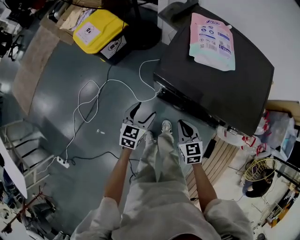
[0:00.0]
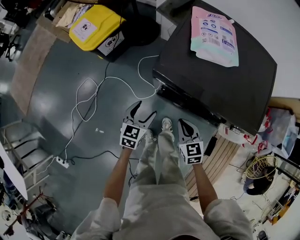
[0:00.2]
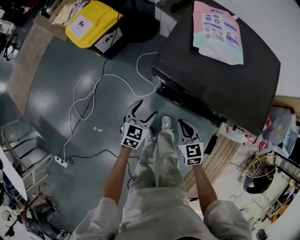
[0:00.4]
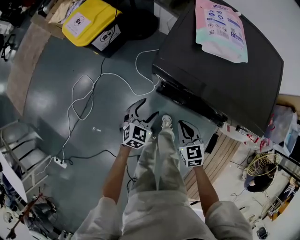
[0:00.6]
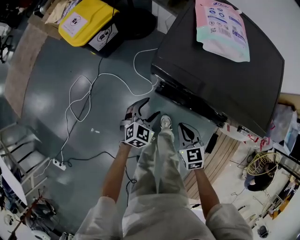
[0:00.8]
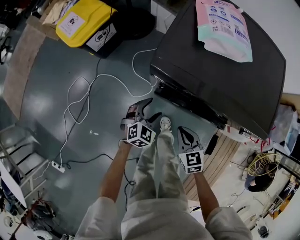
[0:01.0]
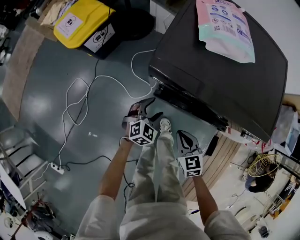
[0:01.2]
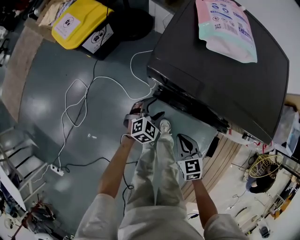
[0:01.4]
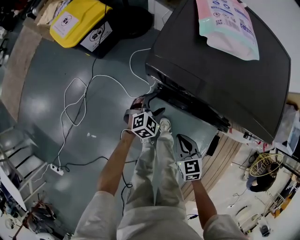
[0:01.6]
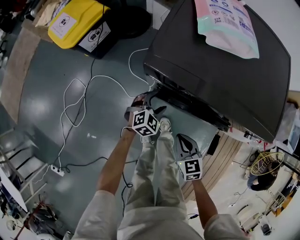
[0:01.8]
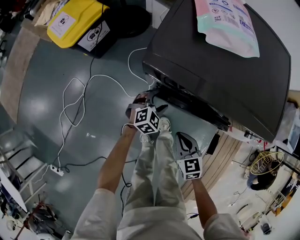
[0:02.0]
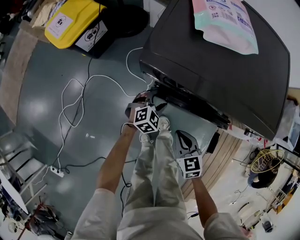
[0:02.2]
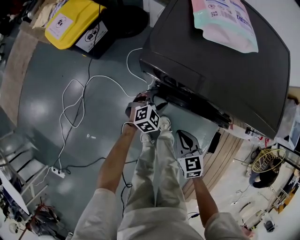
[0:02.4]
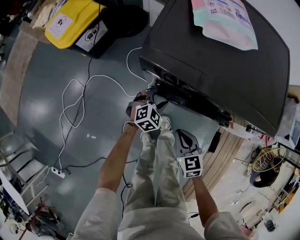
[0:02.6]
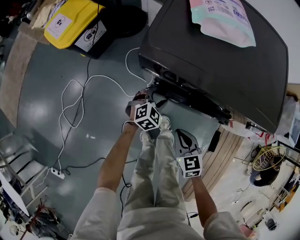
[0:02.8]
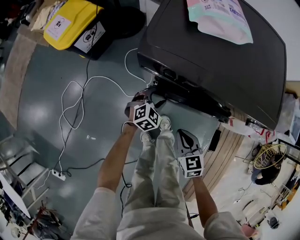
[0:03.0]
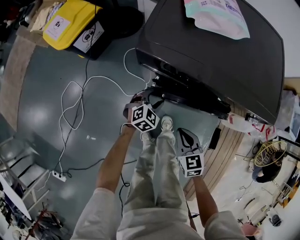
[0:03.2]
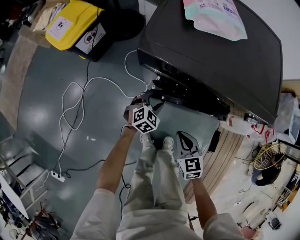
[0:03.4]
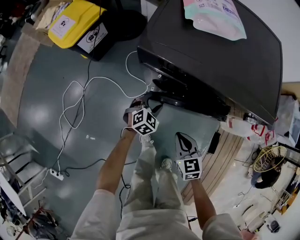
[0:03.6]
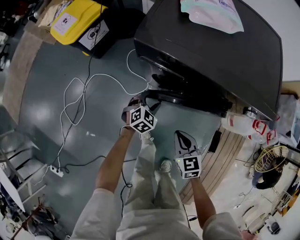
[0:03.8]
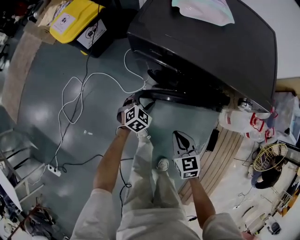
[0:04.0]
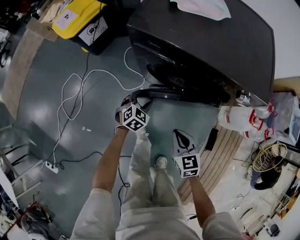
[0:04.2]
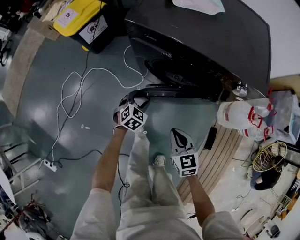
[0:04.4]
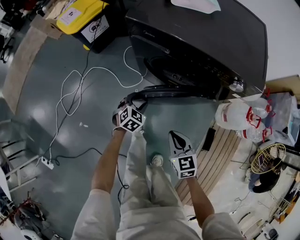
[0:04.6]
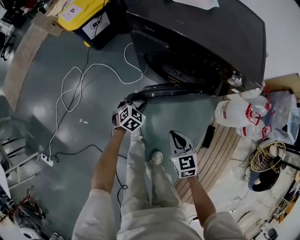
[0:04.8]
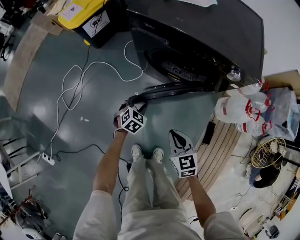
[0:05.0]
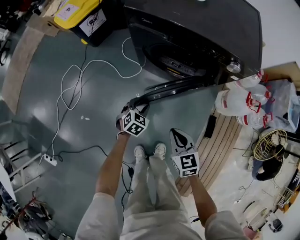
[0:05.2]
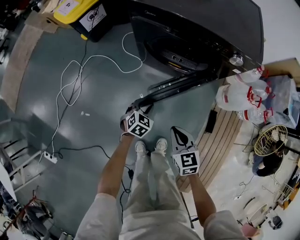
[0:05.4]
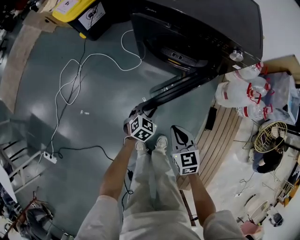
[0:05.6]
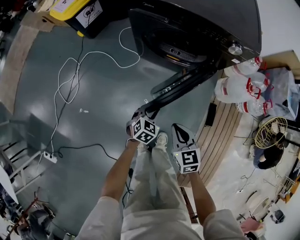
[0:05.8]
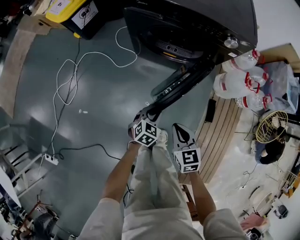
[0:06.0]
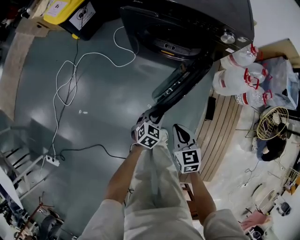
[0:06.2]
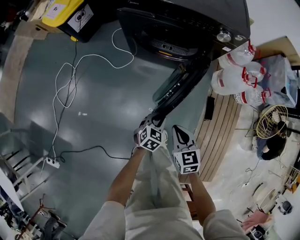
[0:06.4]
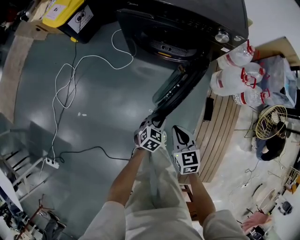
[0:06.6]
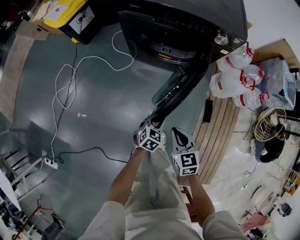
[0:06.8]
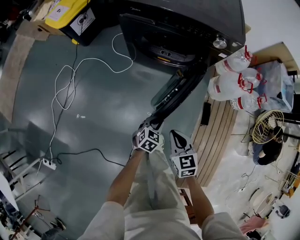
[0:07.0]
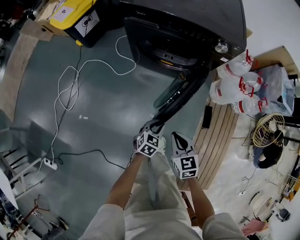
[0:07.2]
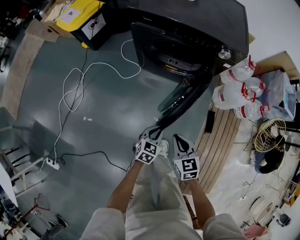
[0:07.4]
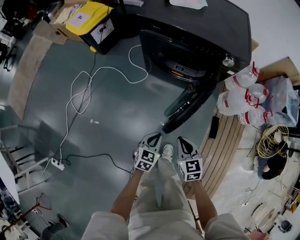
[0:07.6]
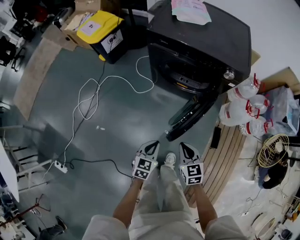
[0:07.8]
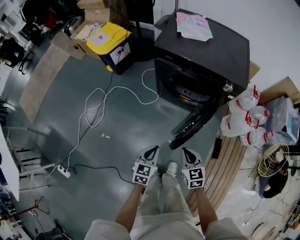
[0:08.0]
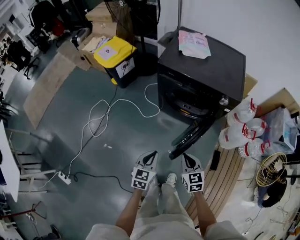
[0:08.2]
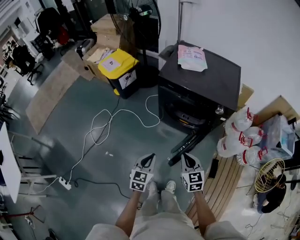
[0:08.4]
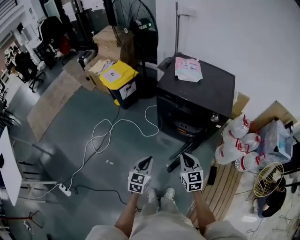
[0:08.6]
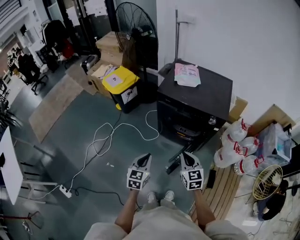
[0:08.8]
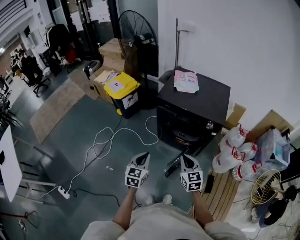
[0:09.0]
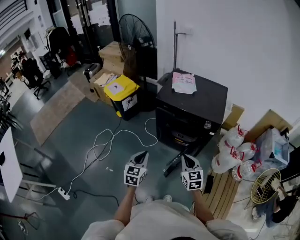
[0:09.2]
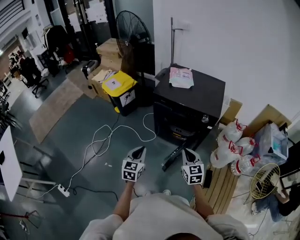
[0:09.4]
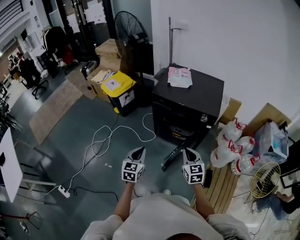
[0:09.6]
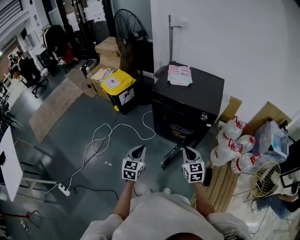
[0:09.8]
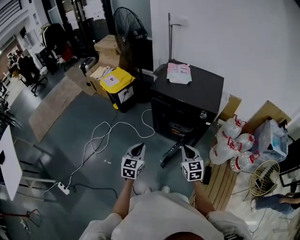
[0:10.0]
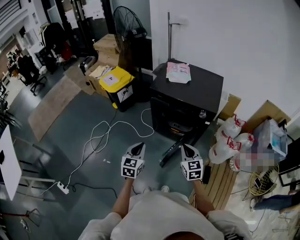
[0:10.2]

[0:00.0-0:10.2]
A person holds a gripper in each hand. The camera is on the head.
0.0 to 1.4 s: Both grippers move downward, some 15 cm. The left gripper rotates about 40 degrees.
1.4 to 3.0 s: The grippers stay close to where they were, moving slightly.
3.0 to 4.4 s: The right gripper heads backward and to the right, covering approximately 15 cm. The left gripper travels backward by some 15 cm.
4.4 to 5.8 s: The grippers both shift backward by about 20 cm. The left gripper closes its fingers.
5.8 to 7.2 s: The left gripper is displaced backward and to the right by roughly 10 cm; the right gripper moves some 5 cm.
7.2 to 8.8 s: The left gripper moves upward and to the left, some 40 cm, and changes its angle by approximately 30 degrees; the right gripper goes roughly 30 cm upward.
8.8 to 10.2 s: The right gripper moves to the right, roughly 5 cm.

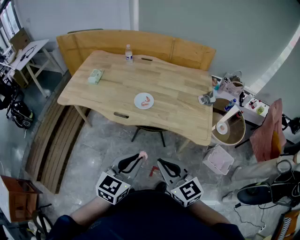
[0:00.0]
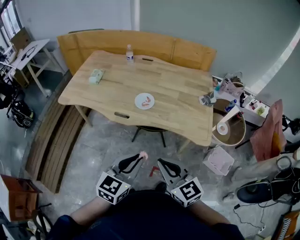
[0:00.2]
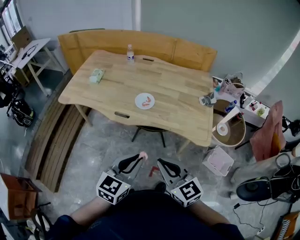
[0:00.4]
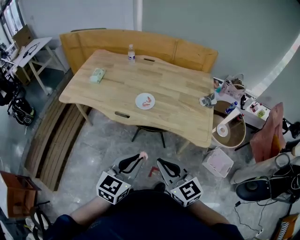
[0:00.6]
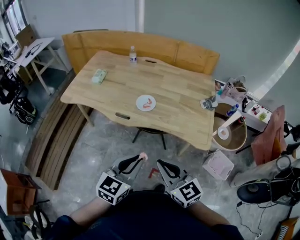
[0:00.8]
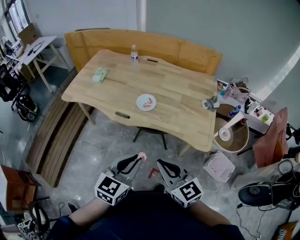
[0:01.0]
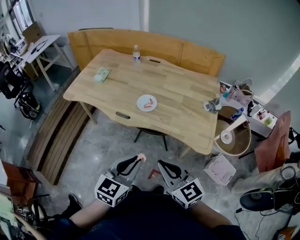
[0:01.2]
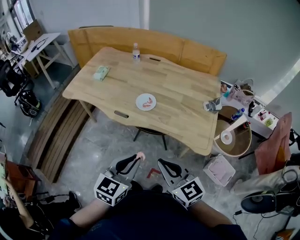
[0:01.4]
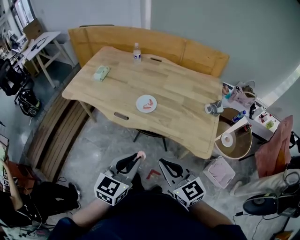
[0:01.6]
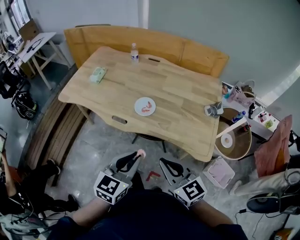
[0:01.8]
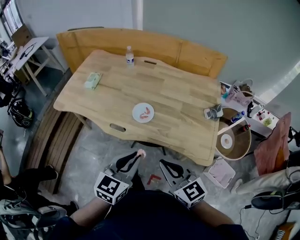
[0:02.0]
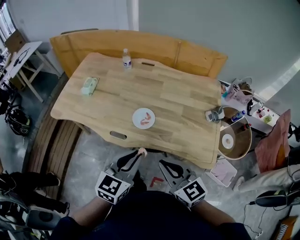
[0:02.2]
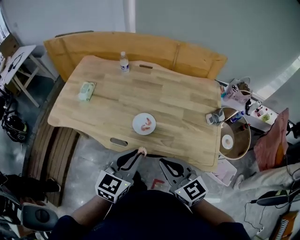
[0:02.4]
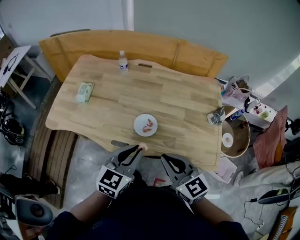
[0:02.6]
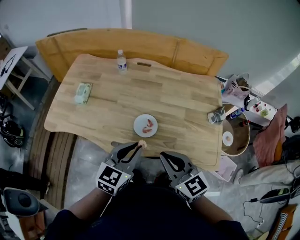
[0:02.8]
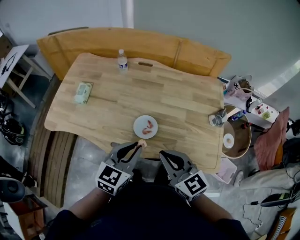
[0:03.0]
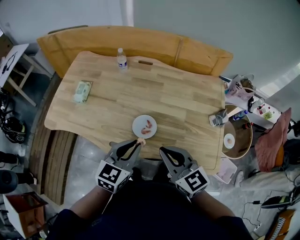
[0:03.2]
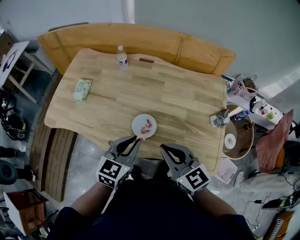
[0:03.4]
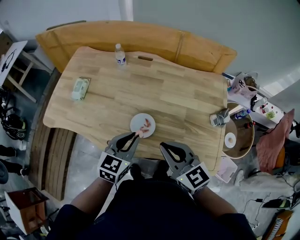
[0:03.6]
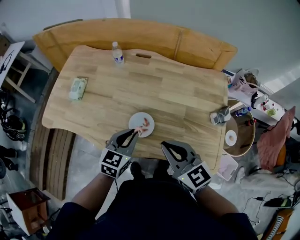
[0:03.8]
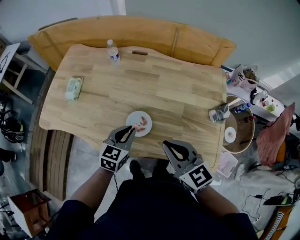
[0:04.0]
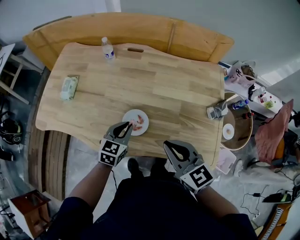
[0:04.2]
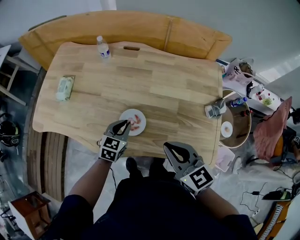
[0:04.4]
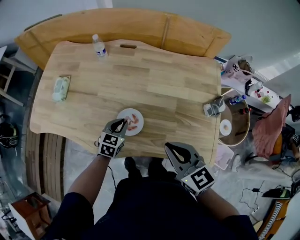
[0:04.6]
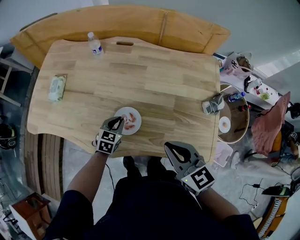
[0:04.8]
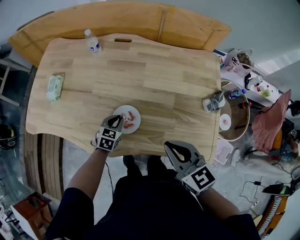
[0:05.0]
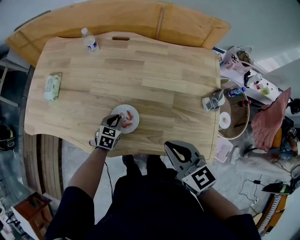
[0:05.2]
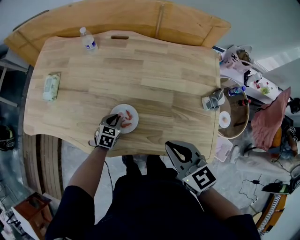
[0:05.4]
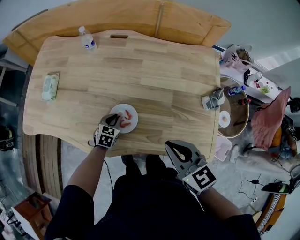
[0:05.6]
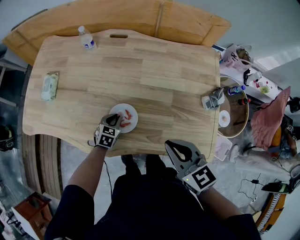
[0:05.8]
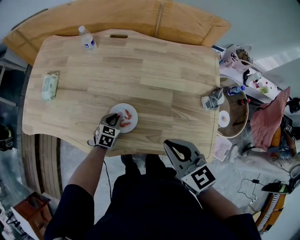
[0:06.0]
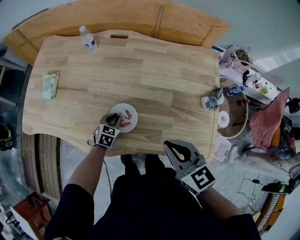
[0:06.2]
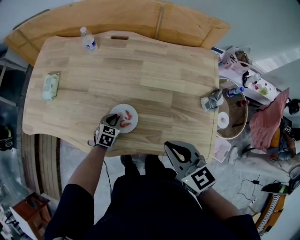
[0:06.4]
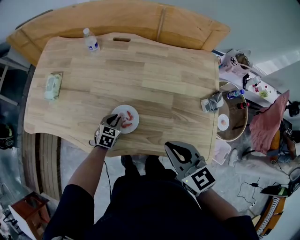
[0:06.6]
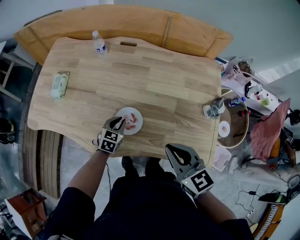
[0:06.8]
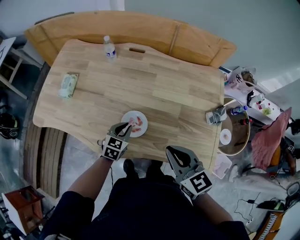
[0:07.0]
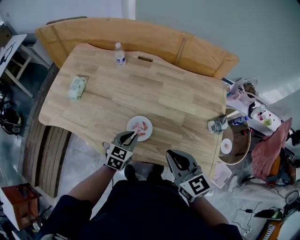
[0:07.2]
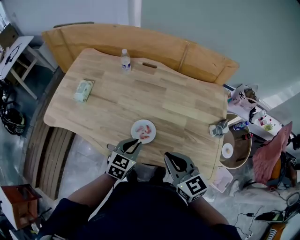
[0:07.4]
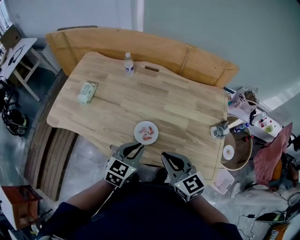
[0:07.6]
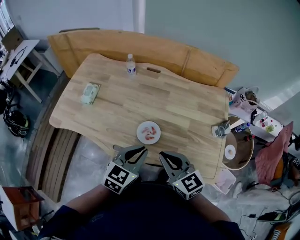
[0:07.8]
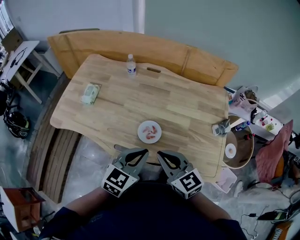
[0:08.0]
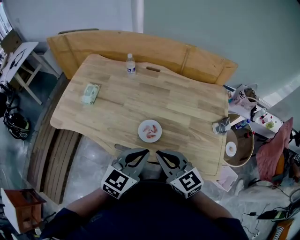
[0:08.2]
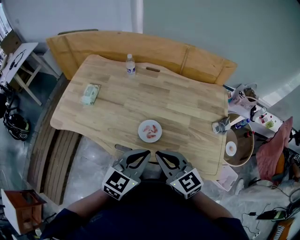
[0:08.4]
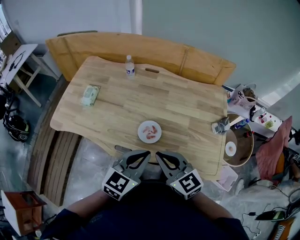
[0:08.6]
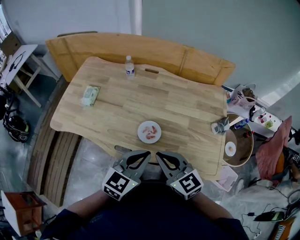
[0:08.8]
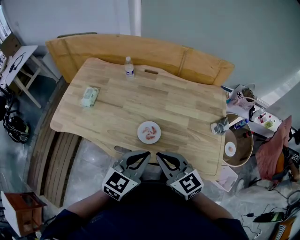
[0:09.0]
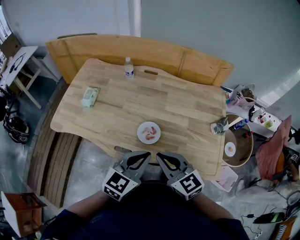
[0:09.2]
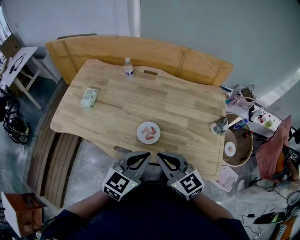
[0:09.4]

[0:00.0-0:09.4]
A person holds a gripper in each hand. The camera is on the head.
0.0 to 1.6 s: The right gripper moves to the right and forward, approximately 10 cm, while the left gripper shifts by about 5 cm.
1.6 to 3.2 s: Both grippers move forward, some 30 cm.
3.2 to 4.8 s: The right gripper travels to the right and downward by approximately 10 cm. Meanwhile the left gripper shifts roughly 30 cm downward and forward.
4.8 to 6.2 s: The left gripper heads downward, covering roughly 5 cm.
6.2 to 7.8 s: The right gripper goes some 10 cm to the left and upward; the left gripper goes roughly 35 cm upward and backward, and rotates approximately 20 degrees.
7.8 to 9.4 s: The left gripper shifts by some 5 cm.

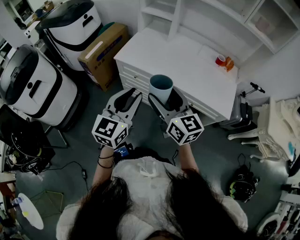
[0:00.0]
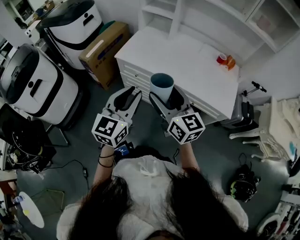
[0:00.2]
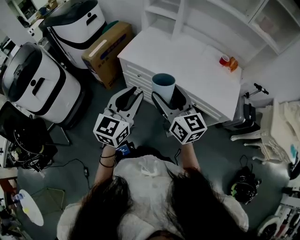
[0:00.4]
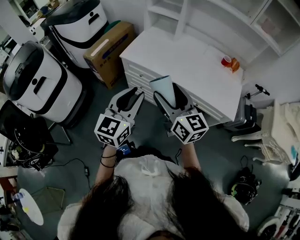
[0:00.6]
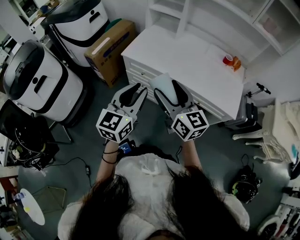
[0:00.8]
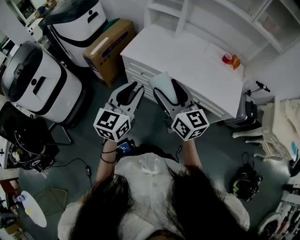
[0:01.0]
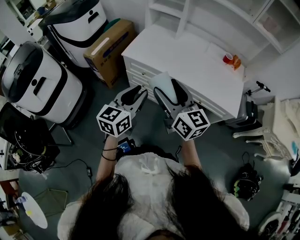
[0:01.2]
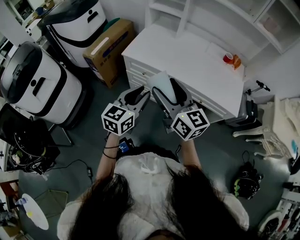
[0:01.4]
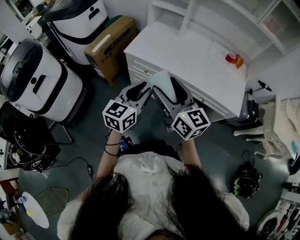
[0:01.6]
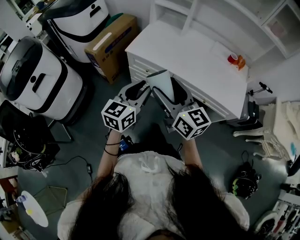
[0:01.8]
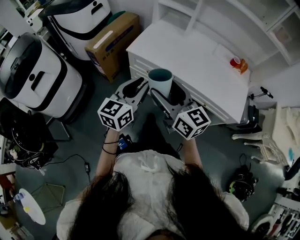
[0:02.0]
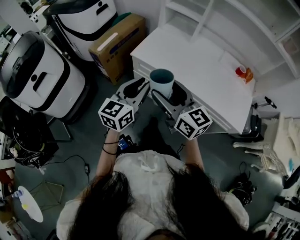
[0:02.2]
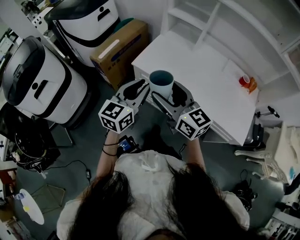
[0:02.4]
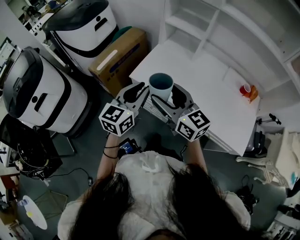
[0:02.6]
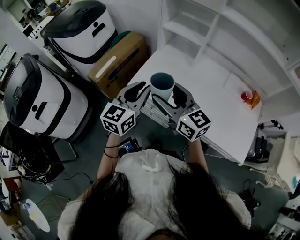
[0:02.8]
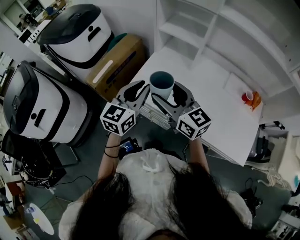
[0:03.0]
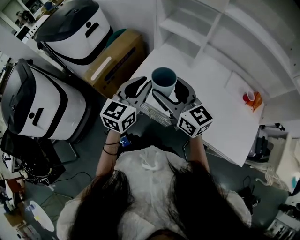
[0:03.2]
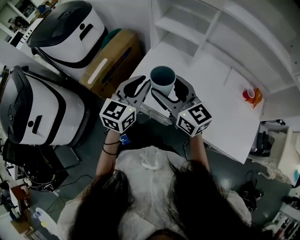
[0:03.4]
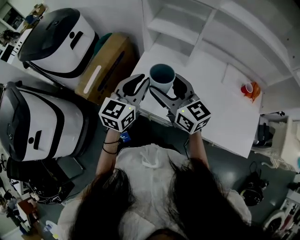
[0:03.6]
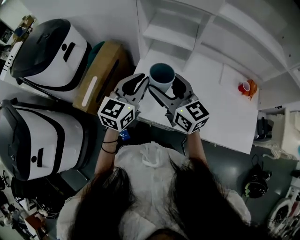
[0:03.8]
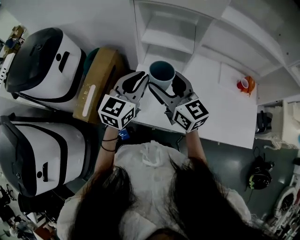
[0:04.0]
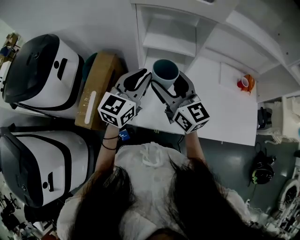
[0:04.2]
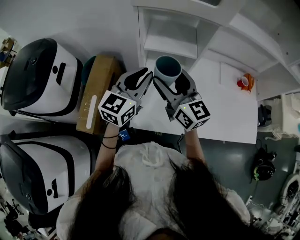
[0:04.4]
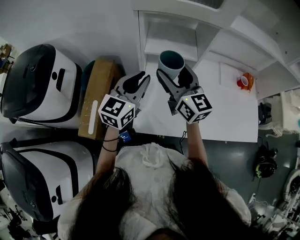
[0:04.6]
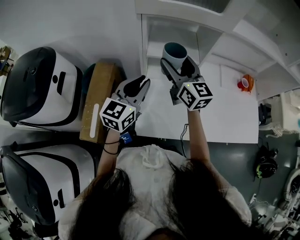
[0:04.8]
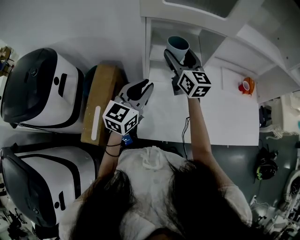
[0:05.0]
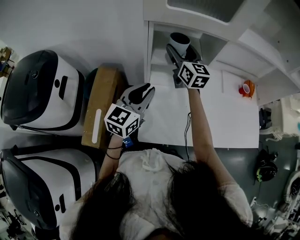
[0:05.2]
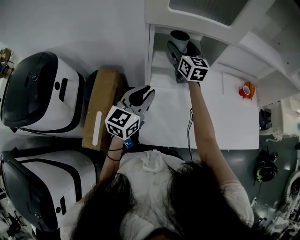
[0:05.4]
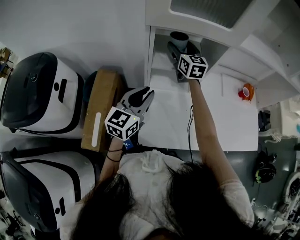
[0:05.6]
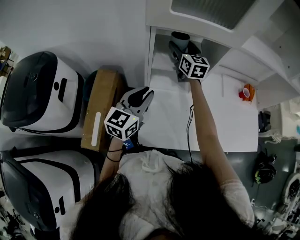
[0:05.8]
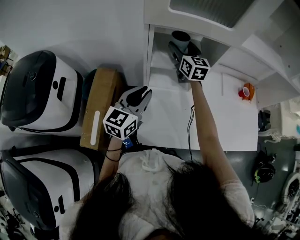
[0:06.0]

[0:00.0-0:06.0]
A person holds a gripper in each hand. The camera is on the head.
0.0 to 1.6 s: The right gripper heads to the left, covering roughly 5 cm, while the left gripper travels downward by some 5 cm.
1.6 to 3.0 s: The grippers both shift forward by roughly 30 cm.
3.0 to 4.4 s: The right gripper changes place by some 25 cm, and changes its angle by about 30 degrees. Meanwhile the left gripper ends up approximately 25 cm from where it was, and rotates approximately 30 degrees.
4.4 to 6.0 s: The right gripper shifts approximately 25 cm forward, and swivels approximately 20 degrees; the left gripper shifts by roughly 5 cm.
